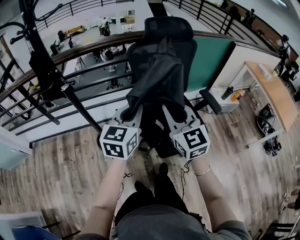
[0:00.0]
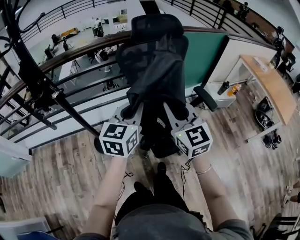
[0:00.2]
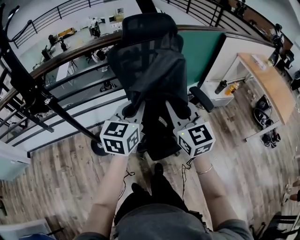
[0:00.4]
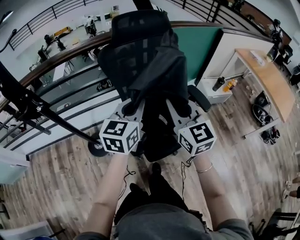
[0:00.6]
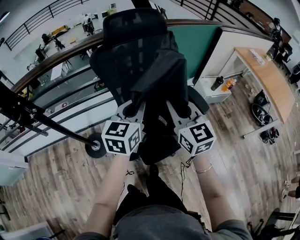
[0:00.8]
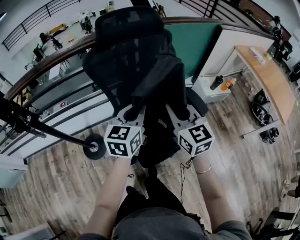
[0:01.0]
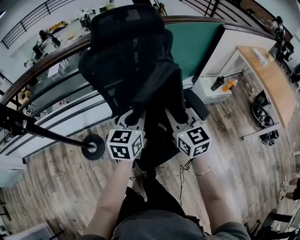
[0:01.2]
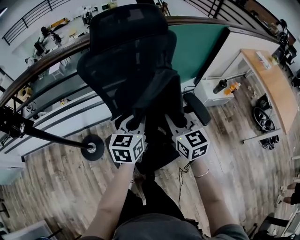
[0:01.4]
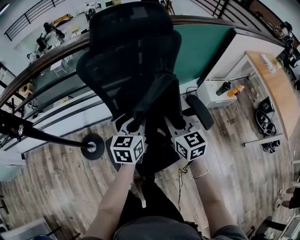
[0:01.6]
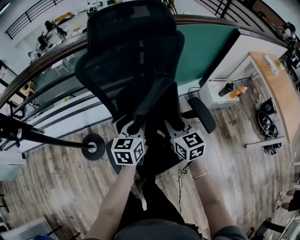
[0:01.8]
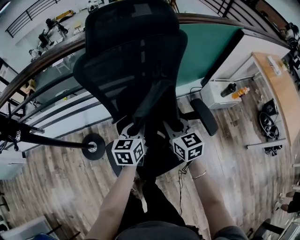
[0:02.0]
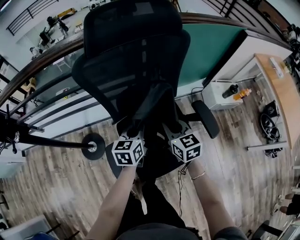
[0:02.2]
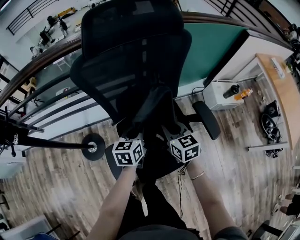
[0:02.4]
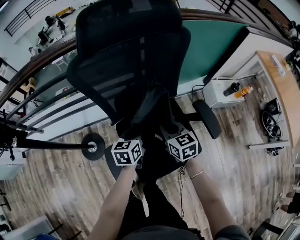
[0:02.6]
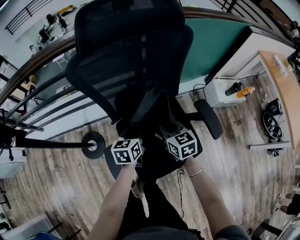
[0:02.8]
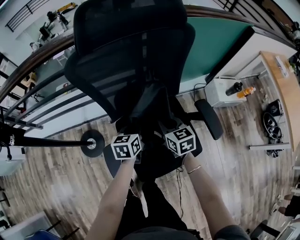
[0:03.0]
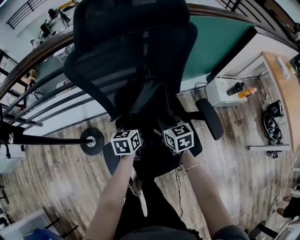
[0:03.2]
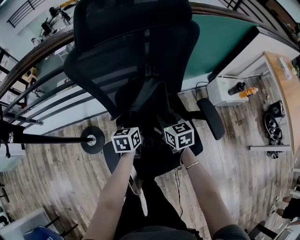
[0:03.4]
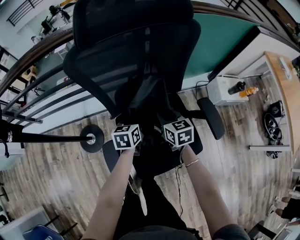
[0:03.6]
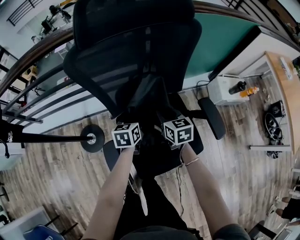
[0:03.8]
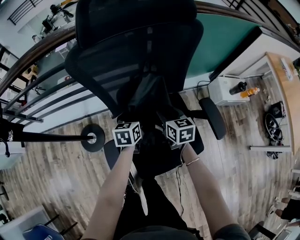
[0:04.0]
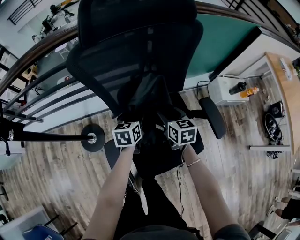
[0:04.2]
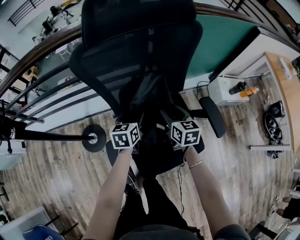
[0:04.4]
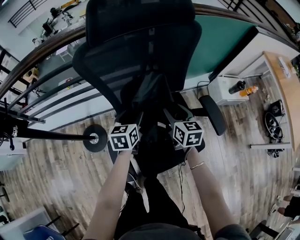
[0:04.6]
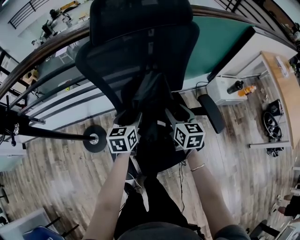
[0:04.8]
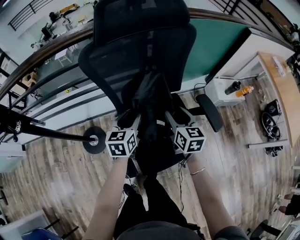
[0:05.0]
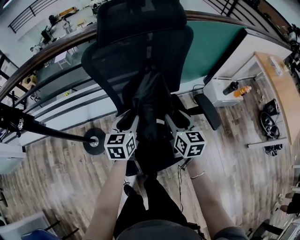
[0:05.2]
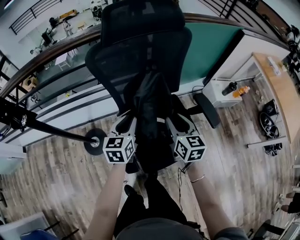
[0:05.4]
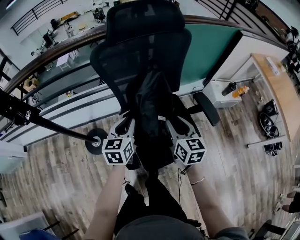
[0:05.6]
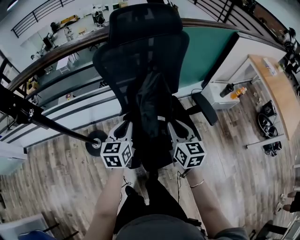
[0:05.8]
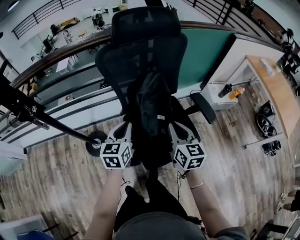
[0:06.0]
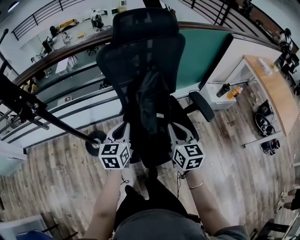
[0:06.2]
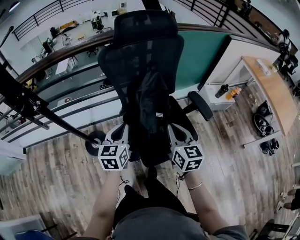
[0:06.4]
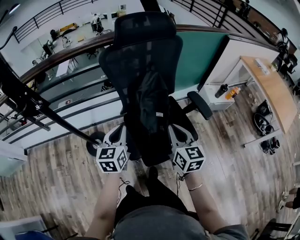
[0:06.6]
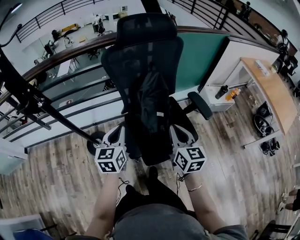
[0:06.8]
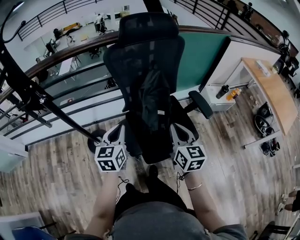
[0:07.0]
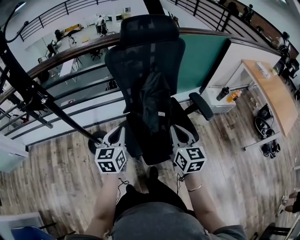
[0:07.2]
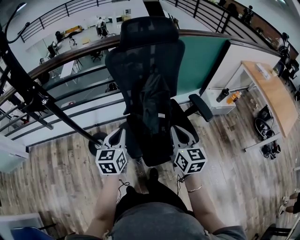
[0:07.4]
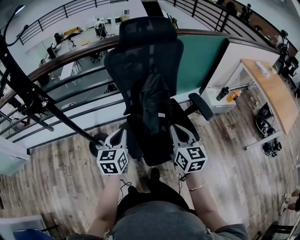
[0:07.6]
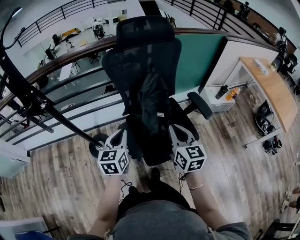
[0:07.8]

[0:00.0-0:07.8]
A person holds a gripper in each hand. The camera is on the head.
0:00.0 to 0:01.6: The two grippers go approximately 30 cm forward, to the right and downward. The right gripper changes its angle by some 20 degrees.
0:01.6 to 0:03.2: Both grippers move downward and forward, approximately 15 cm.
0:03.2 to 0:04.6: The right gripper opens. Meanwhile the left gripper opens its fingers.
0:04.6 to 0:06.2: Both grippers move backward and upward, approximately 25 cm. The right gripper closes its fingers. Meanwhile the left gripper closes its fingers.
0:06.2 to 0:07.8: Both grippers move backward, about 5 cm.

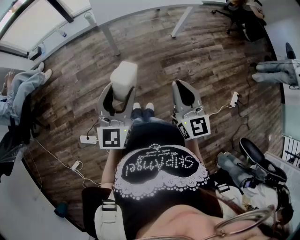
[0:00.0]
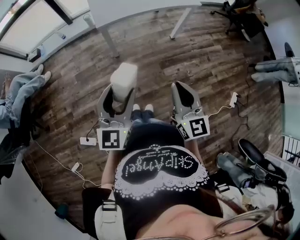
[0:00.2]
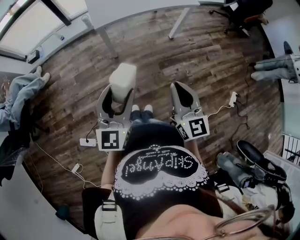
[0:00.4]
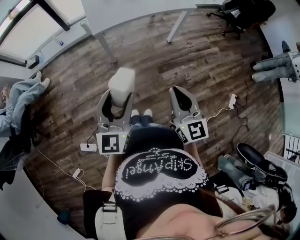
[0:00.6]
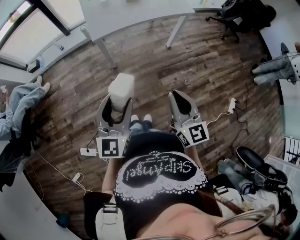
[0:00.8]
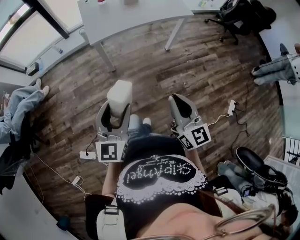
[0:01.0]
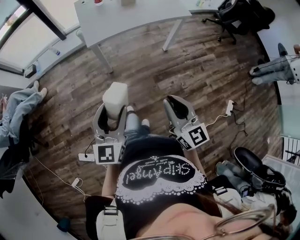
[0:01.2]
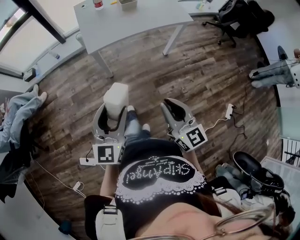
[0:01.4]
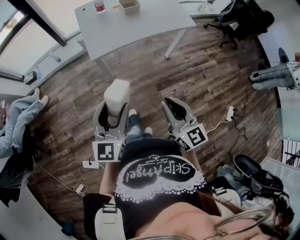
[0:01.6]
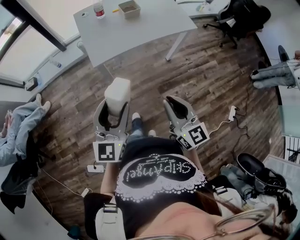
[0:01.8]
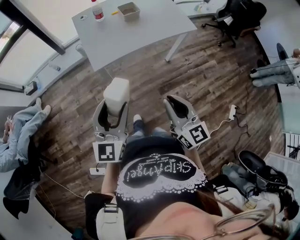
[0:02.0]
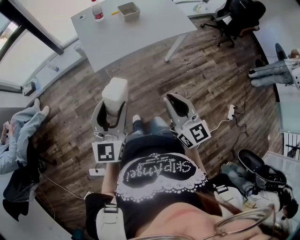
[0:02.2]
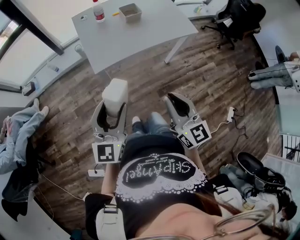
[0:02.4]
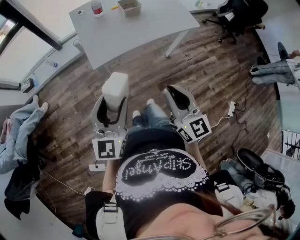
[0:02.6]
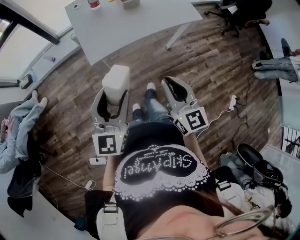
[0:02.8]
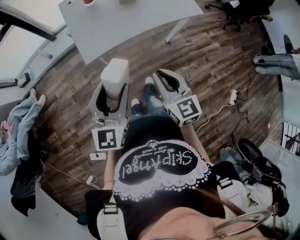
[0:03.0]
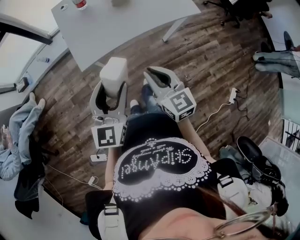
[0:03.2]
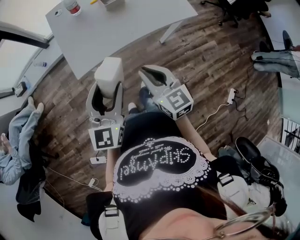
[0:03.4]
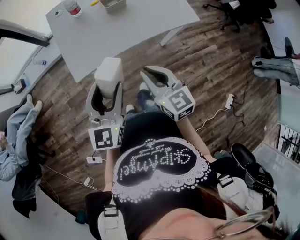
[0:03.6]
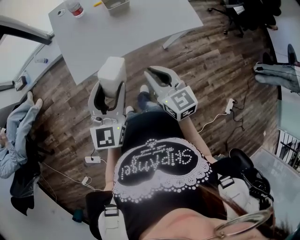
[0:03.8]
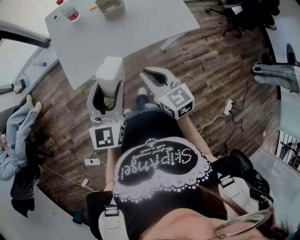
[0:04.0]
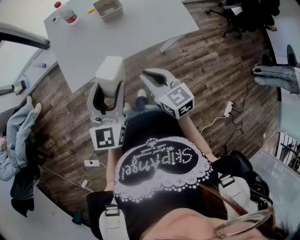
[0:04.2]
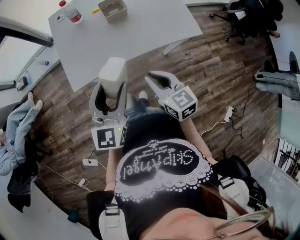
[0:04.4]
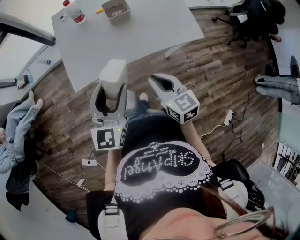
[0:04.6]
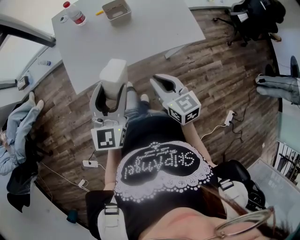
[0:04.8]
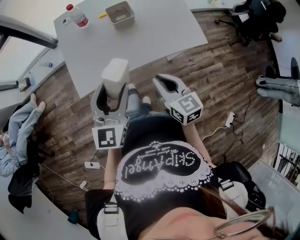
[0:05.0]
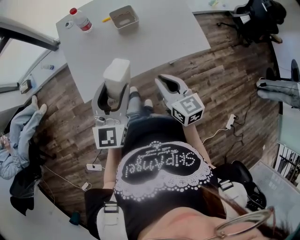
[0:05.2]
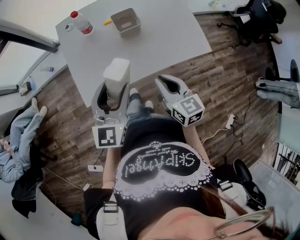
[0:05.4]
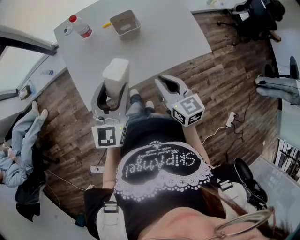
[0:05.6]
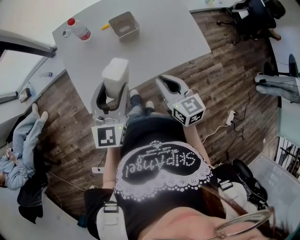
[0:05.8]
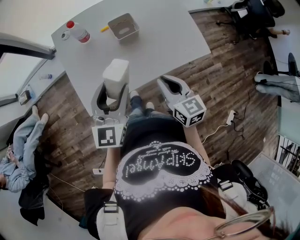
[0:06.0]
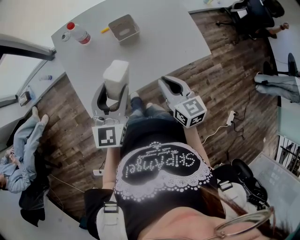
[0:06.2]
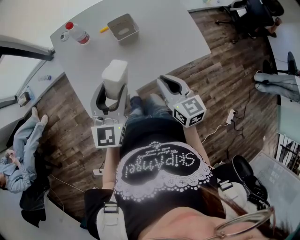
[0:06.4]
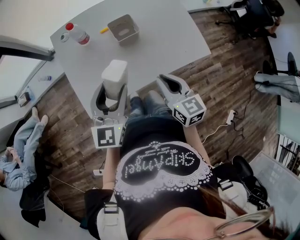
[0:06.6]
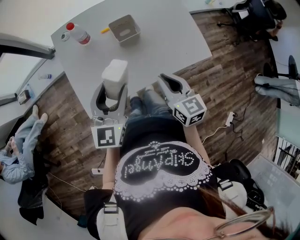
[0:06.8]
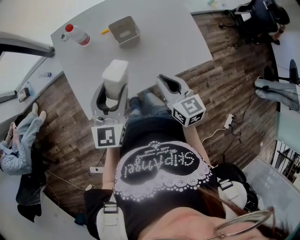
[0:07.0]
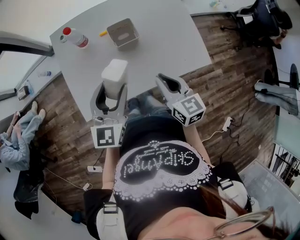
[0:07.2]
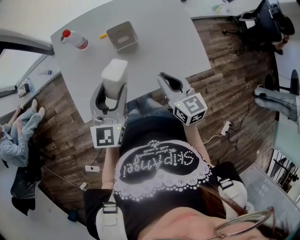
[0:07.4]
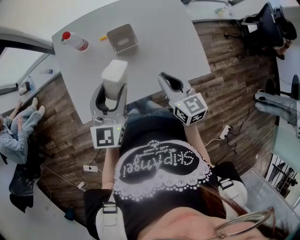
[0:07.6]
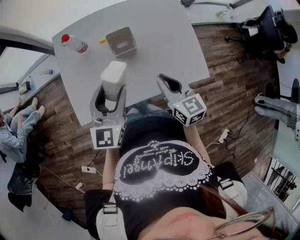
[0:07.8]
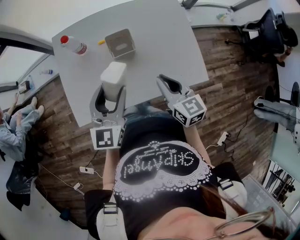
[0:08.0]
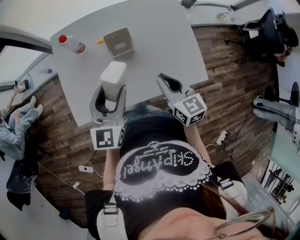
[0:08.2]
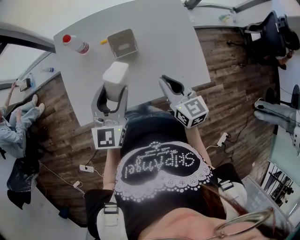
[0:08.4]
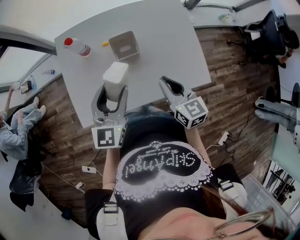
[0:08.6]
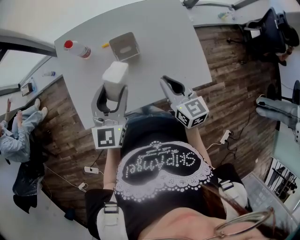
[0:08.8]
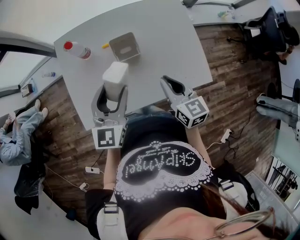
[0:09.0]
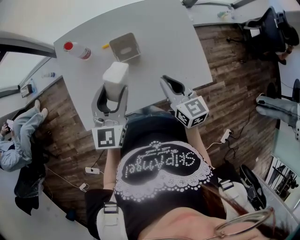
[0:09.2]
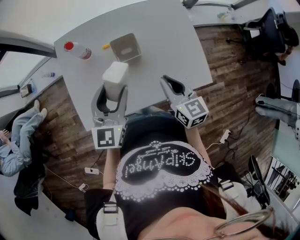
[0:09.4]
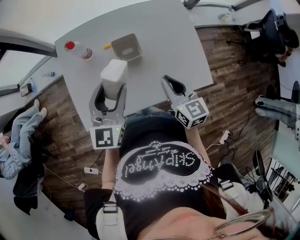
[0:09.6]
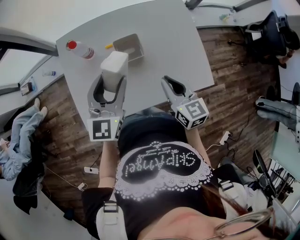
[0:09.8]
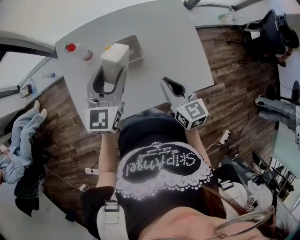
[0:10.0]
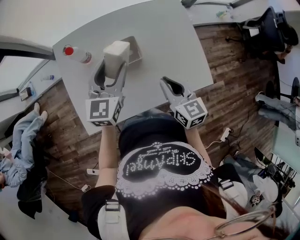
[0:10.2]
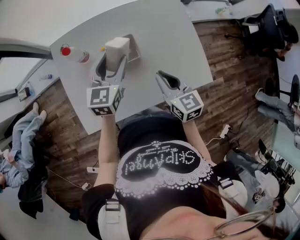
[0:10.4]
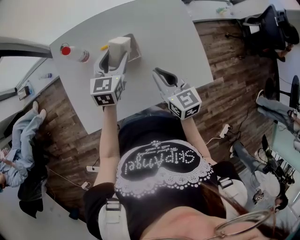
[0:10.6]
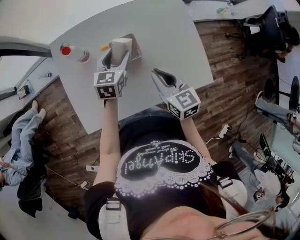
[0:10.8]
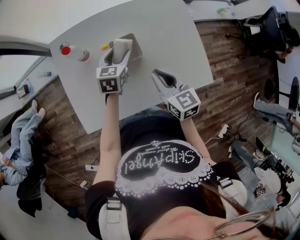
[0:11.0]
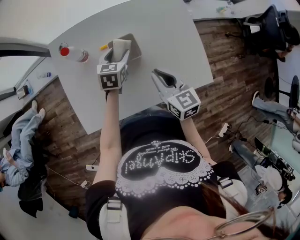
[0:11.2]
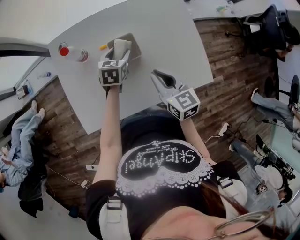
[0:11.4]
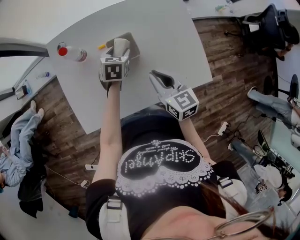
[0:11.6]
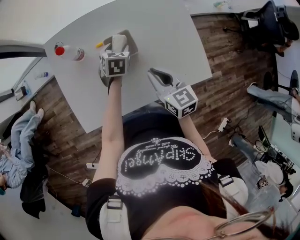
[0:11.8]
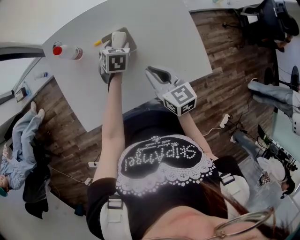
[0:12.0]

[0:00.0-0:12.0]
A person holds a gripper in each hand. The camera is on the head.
0:00.0 to 0:01.6: Both grippers move forward, some 15 cm.
0:01.6 to 0:03.0: Both grippers move forward, approximately 15 cm.
0:03.0 to 0:04.4: The two grippers go approximately 15 cm forward and to the right.
0:04.4 to 0:06.0: The grippers both shift forward by roughly 10 cm.
0:06.0 to 0:07.6: The right gripper is displaced forward and to the right by approximately 10 cm, while the left gripper shifts approximately 5 cm forward.
0:07.6 to 0:09.0: The grippers move only a little.
0:09.0 to 0:10.4: The left gripper moves forward, roughly 10 cm.
0:10.4 to 0:12.0: The left gripper travels downward by roughly 15 cm, and tips its fingers downward by approximately 30 degrees.

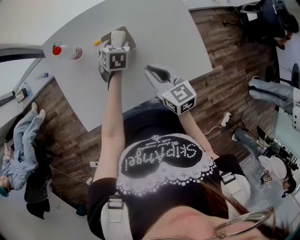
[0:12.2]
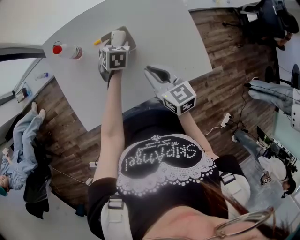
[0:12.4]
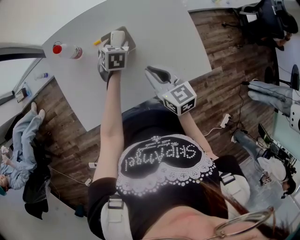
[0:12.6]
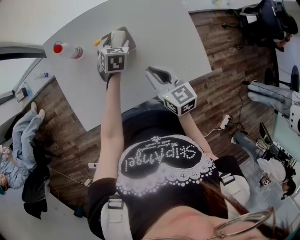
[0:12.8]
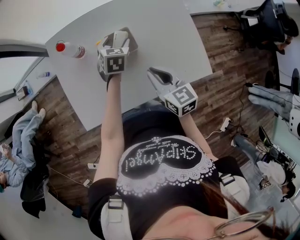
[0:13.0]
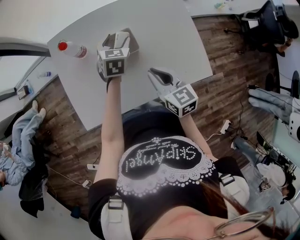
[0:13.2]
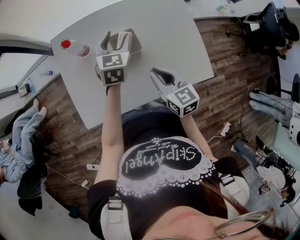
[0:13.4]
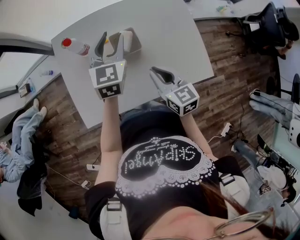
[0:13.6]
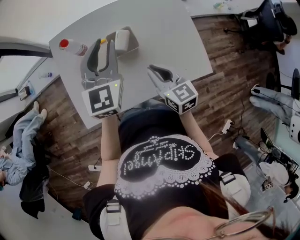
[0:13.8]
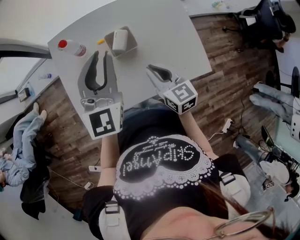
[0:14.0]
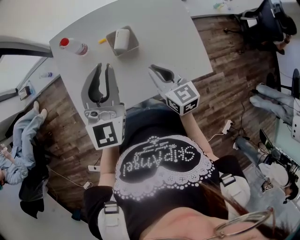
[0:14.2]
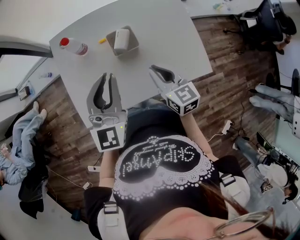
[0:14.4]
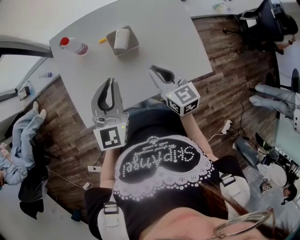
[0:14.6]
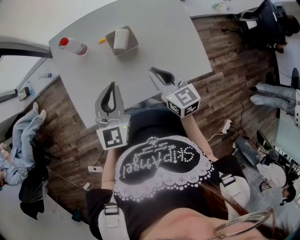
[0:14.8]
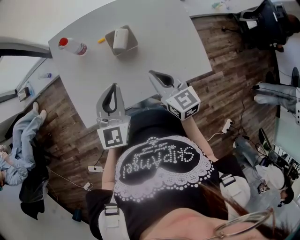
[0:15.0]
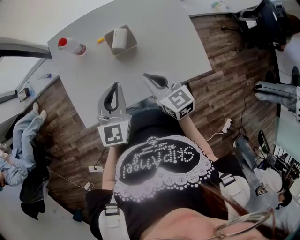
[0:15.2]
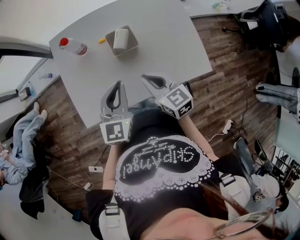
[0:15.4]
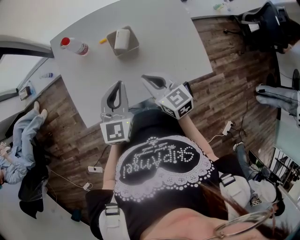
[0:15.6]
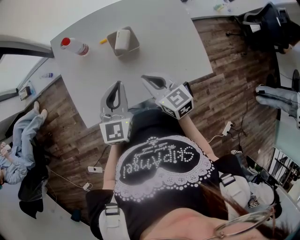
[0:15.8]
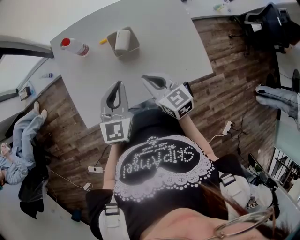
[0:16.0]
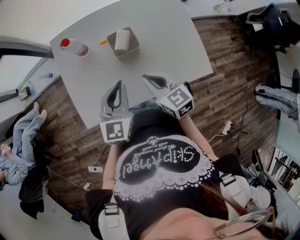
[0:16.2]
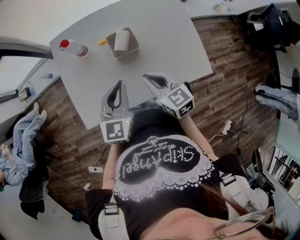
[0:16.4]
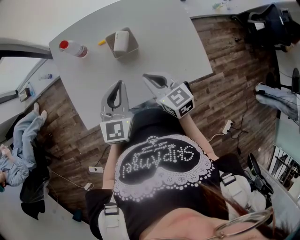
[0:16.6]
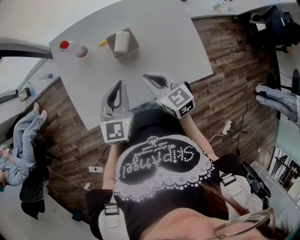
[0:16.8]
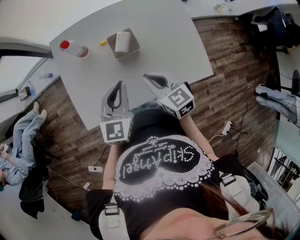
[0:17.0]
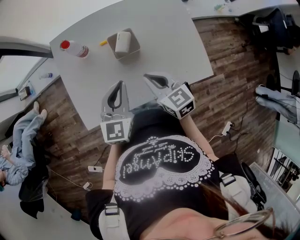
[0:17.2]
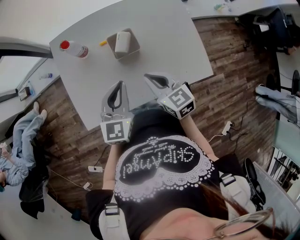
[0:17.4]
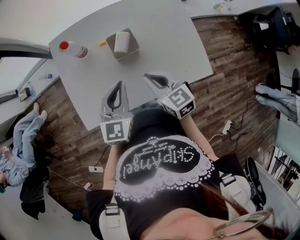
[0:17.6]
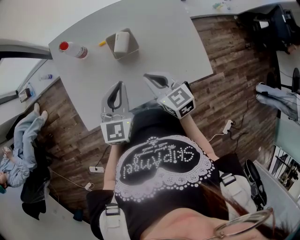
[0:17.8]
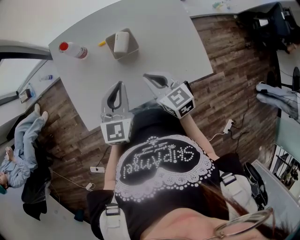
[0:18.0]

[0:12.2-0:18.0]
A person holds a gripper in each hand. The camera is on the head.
0:12.2 to 0:13.6: The left gripper shifts about 20 cm upward, and tips its fingers upward by roughly 30 degrees.
0:13.6 to 0:15.0: The left gripper heads backward, covering about 15 cm, and closes its fingers.
0:15.0 to 0:16.6: There are only small adjustments of the grippers.
0:16.6 to 0:18.0: Both grippers stay about where they are.
